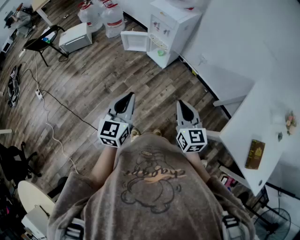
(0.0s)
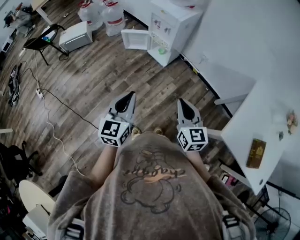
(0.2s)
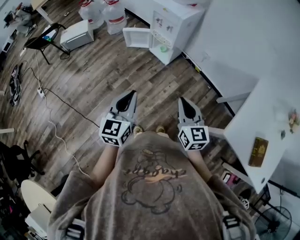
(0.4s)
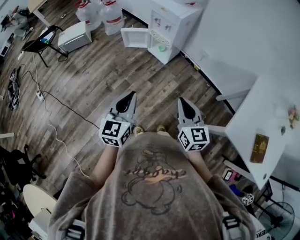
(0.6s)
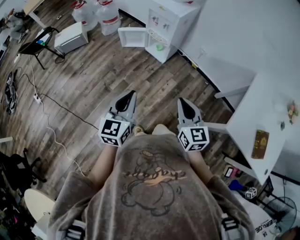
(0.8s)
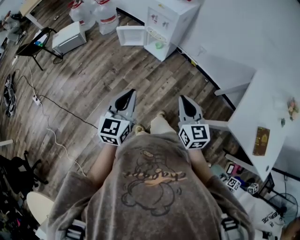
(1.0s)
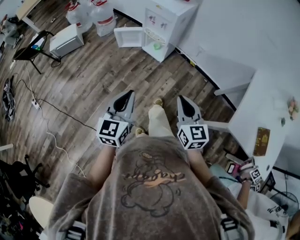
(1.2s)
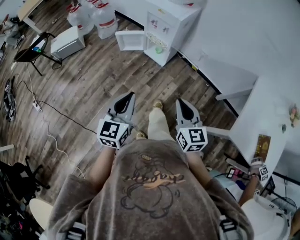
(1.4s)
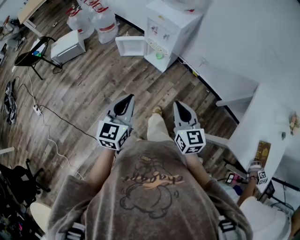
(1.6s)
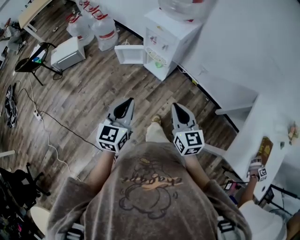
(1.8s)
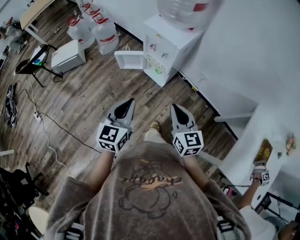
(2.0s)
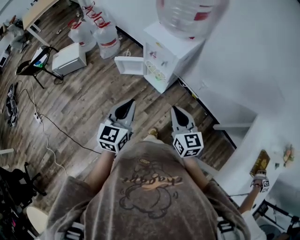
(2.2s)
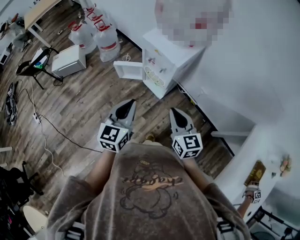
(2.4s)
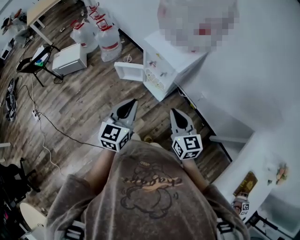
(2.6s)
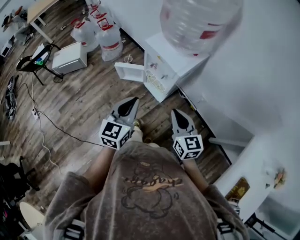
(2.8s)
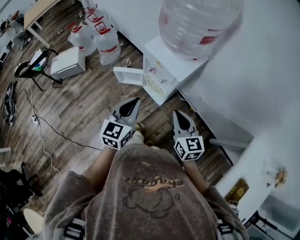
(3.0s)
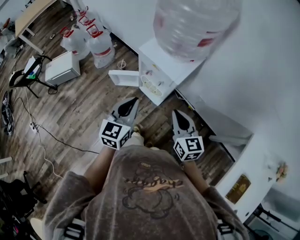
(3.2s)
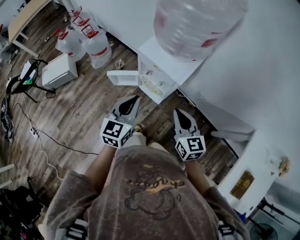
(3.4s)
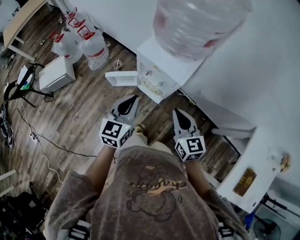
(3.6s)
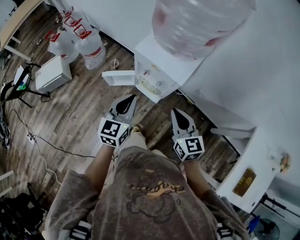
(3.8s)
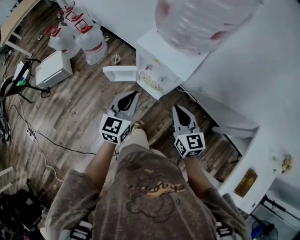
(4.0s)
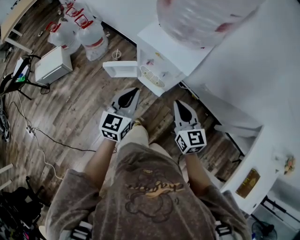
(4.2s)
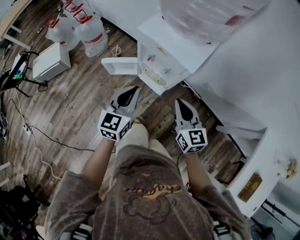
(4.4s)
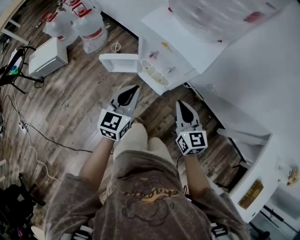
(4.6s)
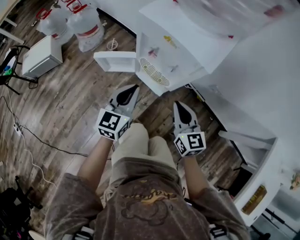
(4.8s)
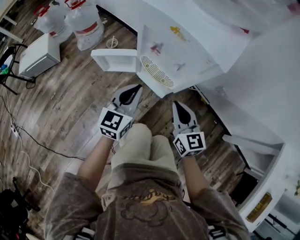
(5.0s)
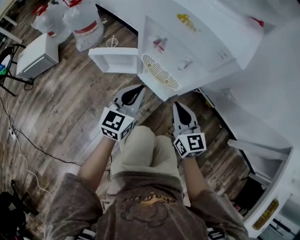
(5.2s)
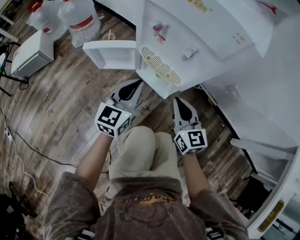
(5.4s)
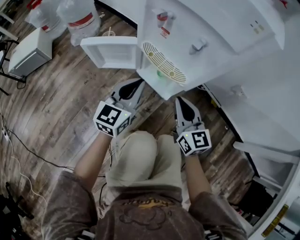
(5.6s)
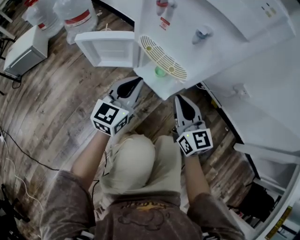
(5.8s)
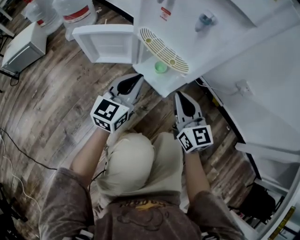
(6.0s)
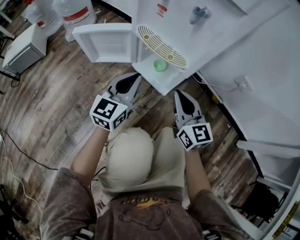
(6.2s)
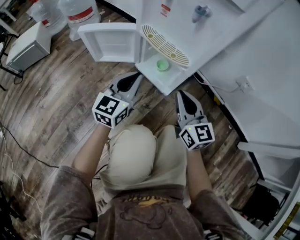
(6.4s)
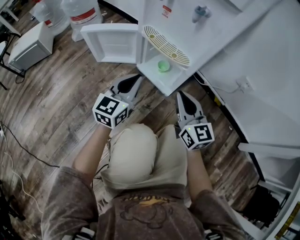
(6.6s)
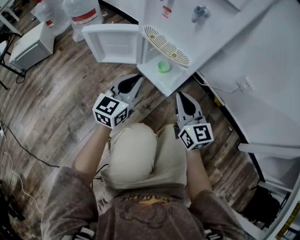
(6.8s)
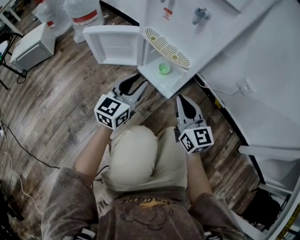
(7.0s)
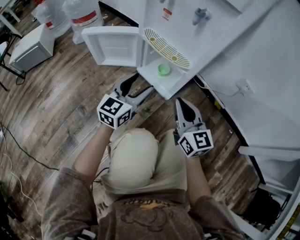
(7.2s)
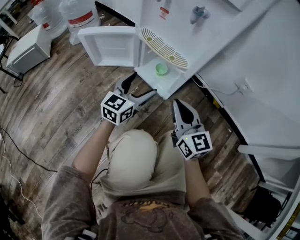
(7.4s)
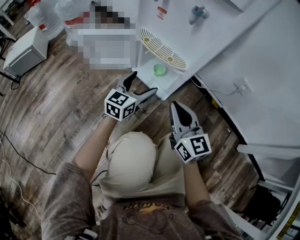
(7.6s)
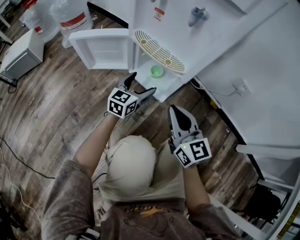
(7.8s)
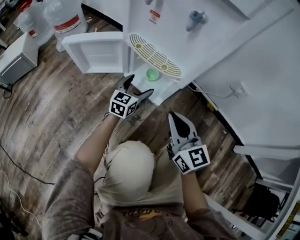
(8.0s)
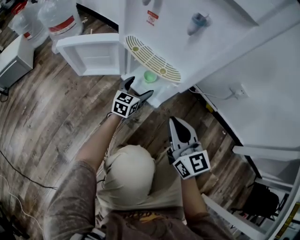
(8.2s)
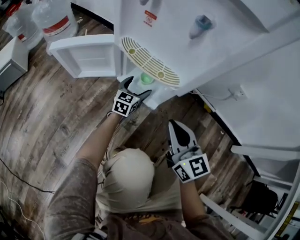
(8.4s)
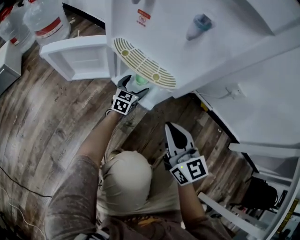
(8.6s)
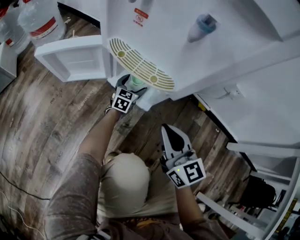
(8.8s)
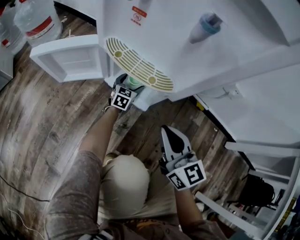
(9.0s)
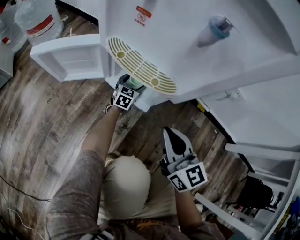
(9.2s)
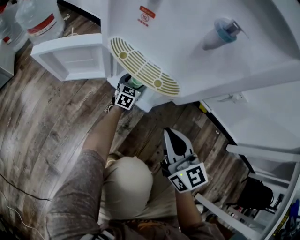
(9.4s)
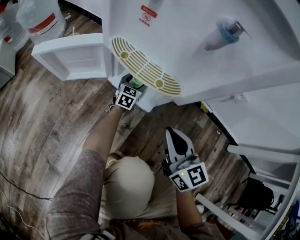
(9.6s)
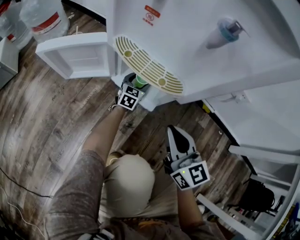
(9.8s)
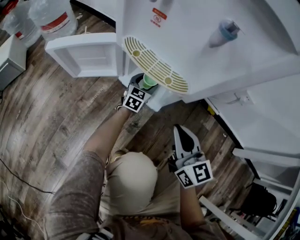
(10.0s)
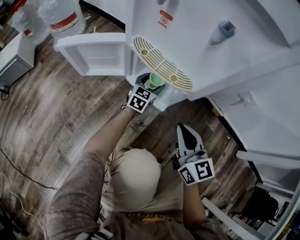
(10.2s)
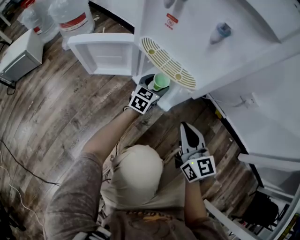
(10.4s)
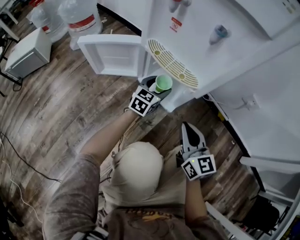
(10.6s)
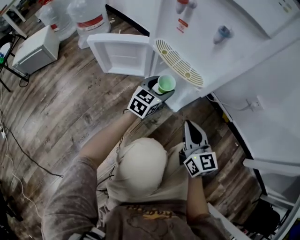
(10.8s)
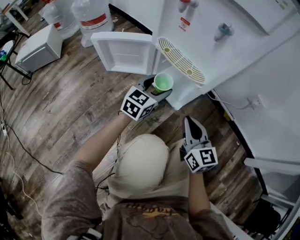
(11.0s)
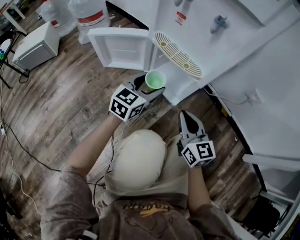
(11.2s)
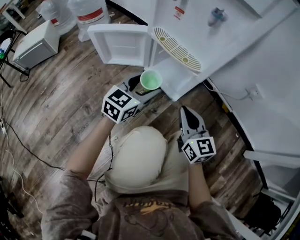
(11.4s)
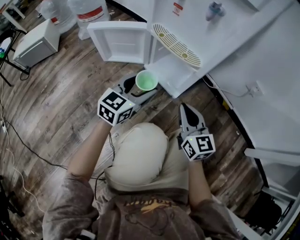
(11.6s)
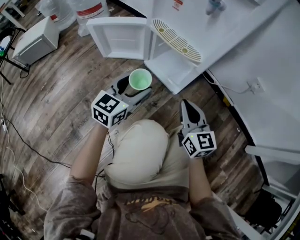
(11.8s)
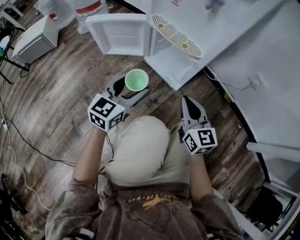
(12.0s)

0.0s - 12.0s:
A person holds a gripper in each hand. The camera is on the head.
0.0s - 1.6s: The right gripper is displaced forward and to the left by approximately 15 cm. Meanwhile the left gripper heads forward, covering some 15 cm.
1.6s - 3.0s: The grippers both shift forward by some 30 cm.
3.0s - 4.4s: Both grippers move downward and forward, about 15 cm.
4.4s - 6.0s: The two grippers go approximately 40 cm downward.
6.0s - 7.6s: The left gripper shifts about 10 cm downward, and opens.
7.6s - 9.0s: The left gripper moves downward and forward, roughly 30 cm.
9.0s - 10.4s: The left gripper goes about 15 cm upward and backward.
10.4s - 12.0s: The left gripper moves backward, upward and to the left, some 25 cm.

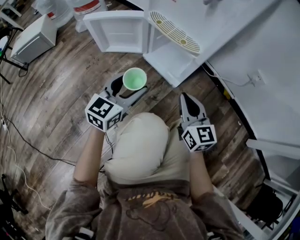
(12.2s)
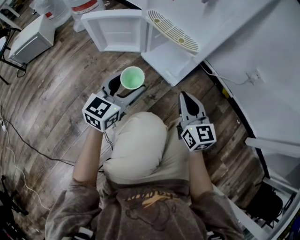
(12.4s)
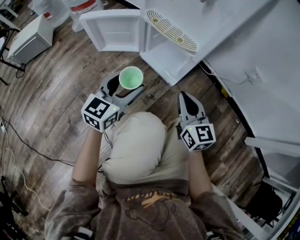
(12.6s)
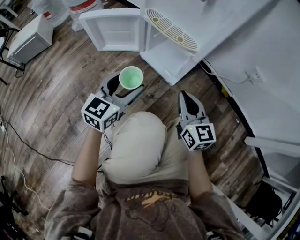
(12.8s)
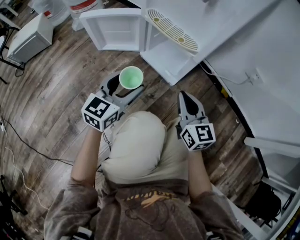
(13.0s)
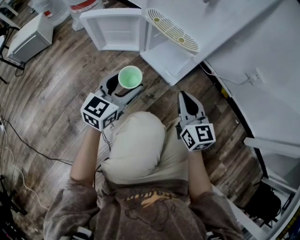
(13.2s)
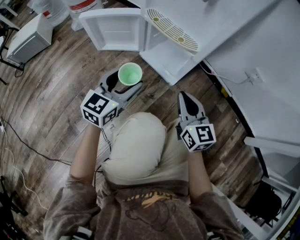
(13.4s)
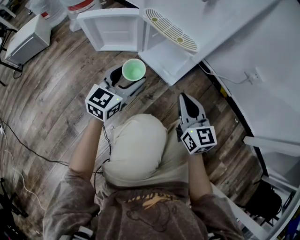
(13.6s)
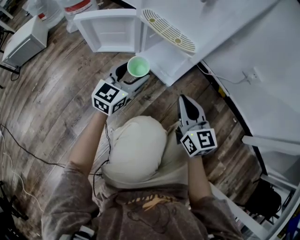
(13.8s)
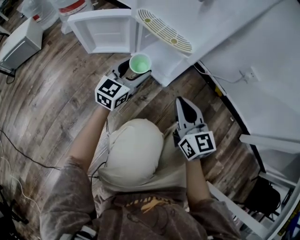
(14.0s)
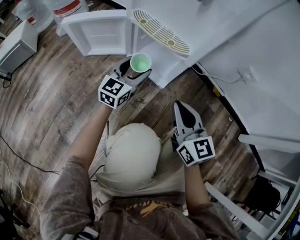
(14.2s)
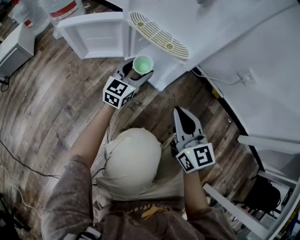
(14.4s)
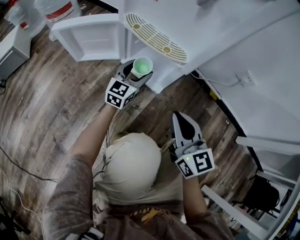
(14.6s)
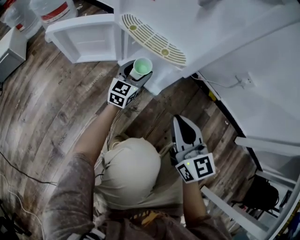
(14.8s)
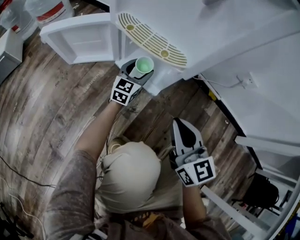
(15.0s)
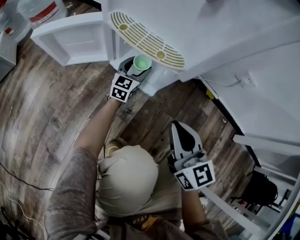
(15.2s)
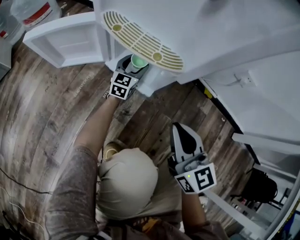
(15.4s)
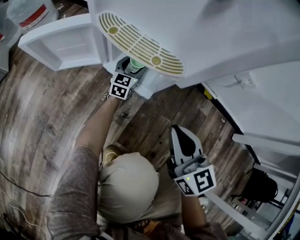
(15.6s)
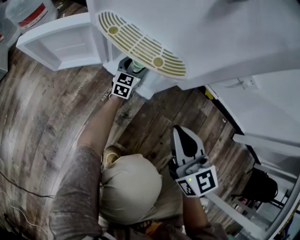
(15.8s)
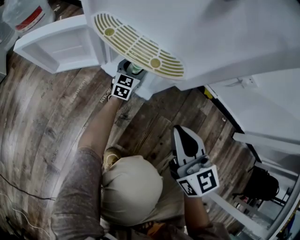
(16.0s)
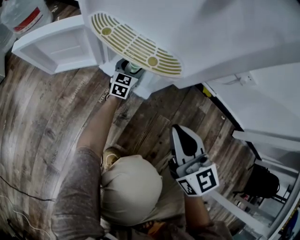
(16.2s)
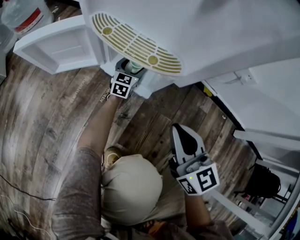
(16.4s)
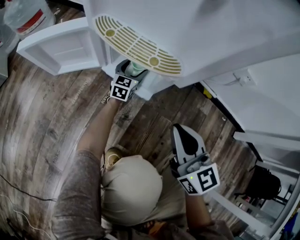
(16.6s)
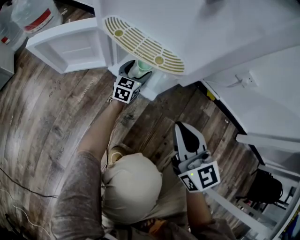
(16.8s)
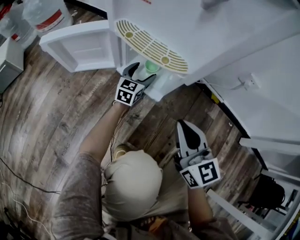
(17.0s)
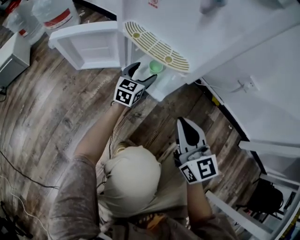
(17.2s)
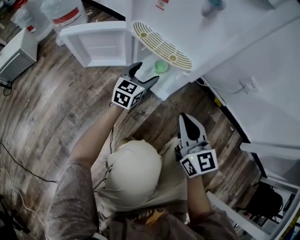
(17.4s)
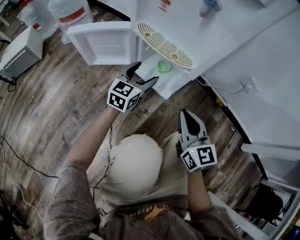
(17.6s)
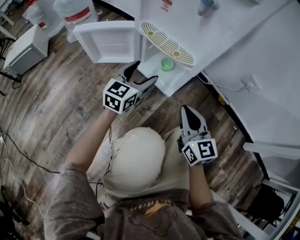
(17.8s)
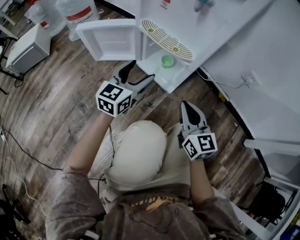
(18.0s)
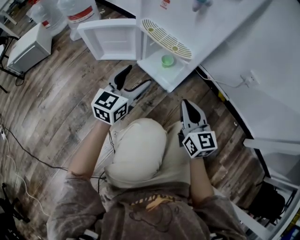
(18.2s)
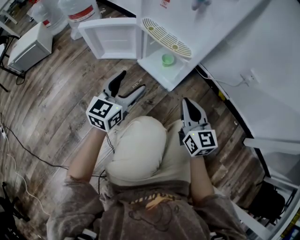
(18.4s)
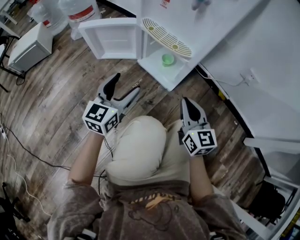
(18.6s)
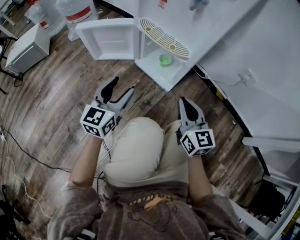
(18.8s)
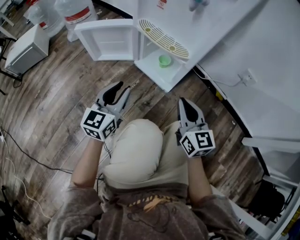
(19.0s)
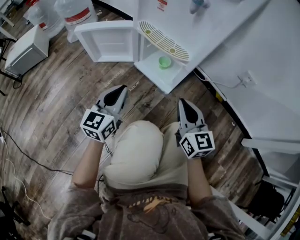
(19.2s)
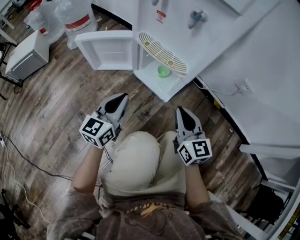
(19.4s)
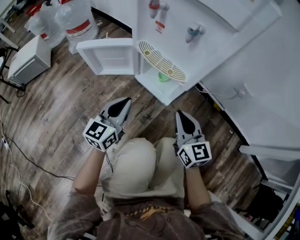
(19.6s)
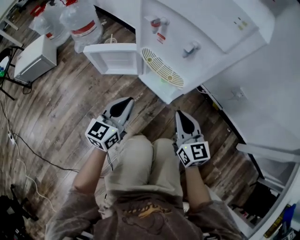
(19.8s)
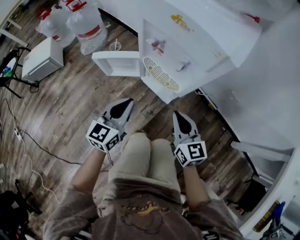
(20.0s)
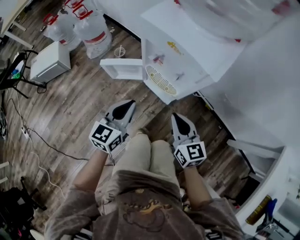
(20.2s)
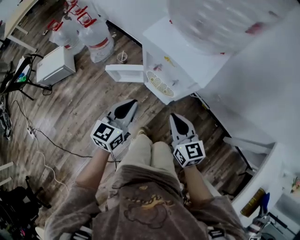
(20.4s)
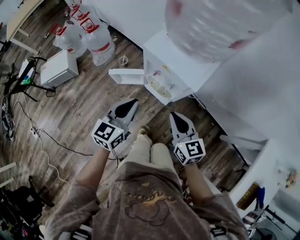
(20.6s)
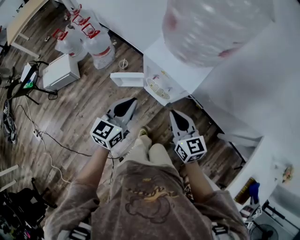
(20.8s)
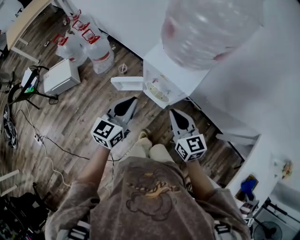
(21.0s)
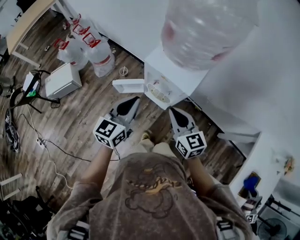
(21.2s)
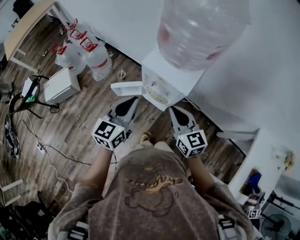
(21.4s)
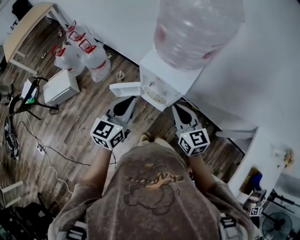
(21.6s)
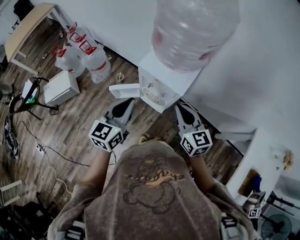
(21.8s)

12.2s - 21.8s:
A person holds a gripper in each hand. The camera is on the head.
12.2s - 13.8s: The left gripper is displaced forward by about 5 cm.
13.8s - 15.4s: The left gripper moves forward, downward and to the right, about 30 cm.
15.4s - 17.0s: There are only small adjustments of the grippers.
17.0s - 18.6s: The left gripper goes roughly 35 cm backward, upward and to the left.
18.6s - 20.2s: The two grippers go approximately 30 cm upward. The left gripper closes up.
20.2s - 21.8s: Both grippers travel together upward, approximately 35 cm.

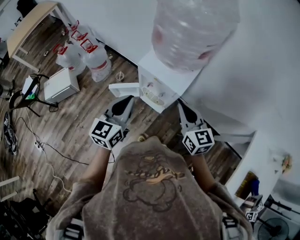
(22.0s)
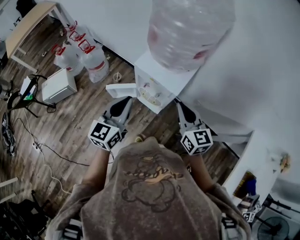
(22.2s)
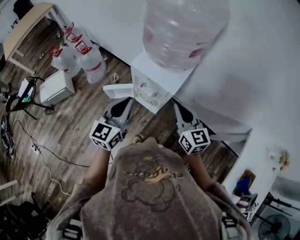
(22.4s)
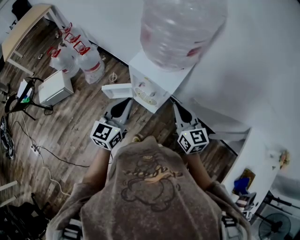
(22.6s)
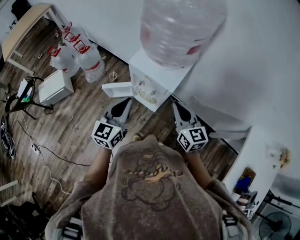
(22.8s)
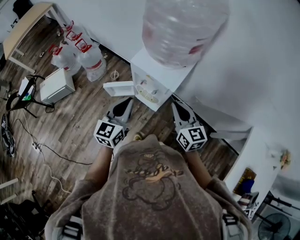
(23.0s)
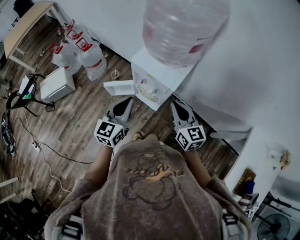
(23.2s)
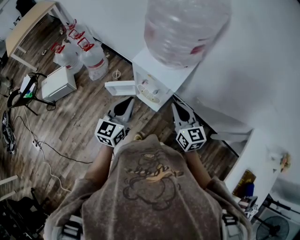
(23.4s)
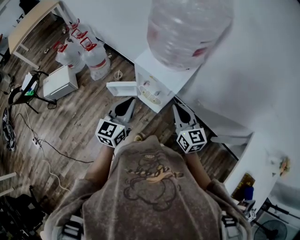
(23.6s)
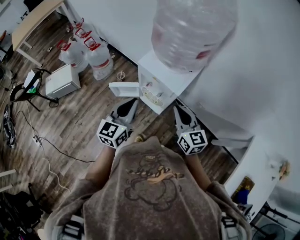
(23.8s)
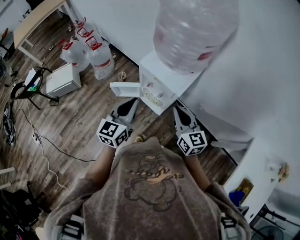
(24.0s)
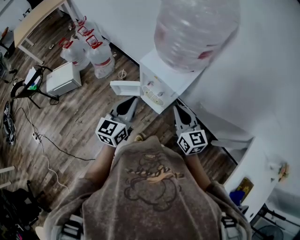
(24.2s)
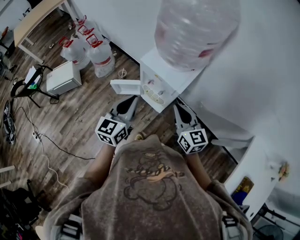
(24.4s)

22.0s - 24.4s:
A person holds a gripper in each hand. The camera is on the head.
22.0s - 23.2s: The left gripper changes place by roughly 5 cm.
23.2s - 24.4s: The grippers make only small movements.
